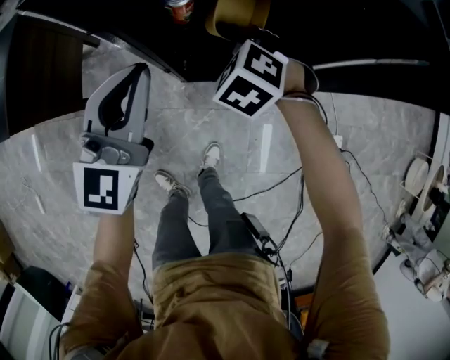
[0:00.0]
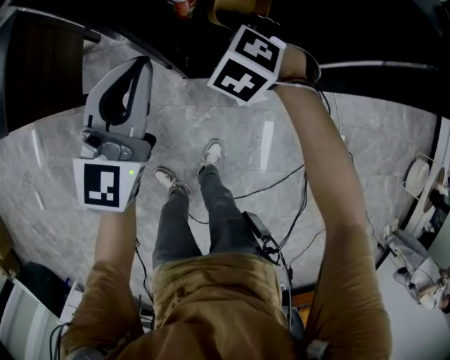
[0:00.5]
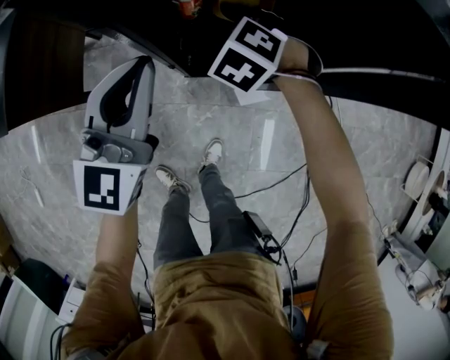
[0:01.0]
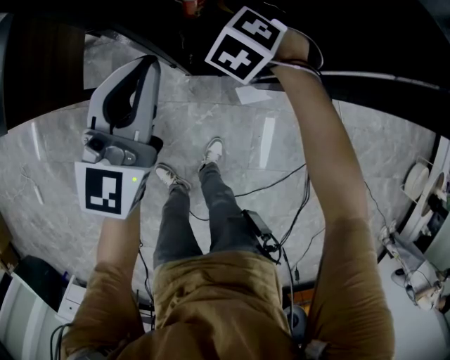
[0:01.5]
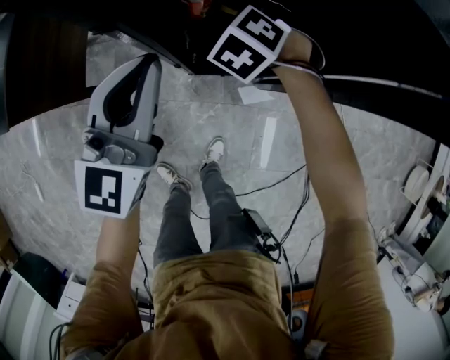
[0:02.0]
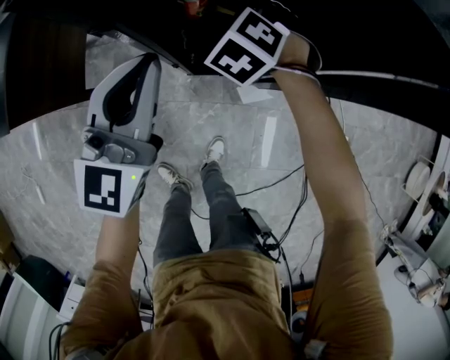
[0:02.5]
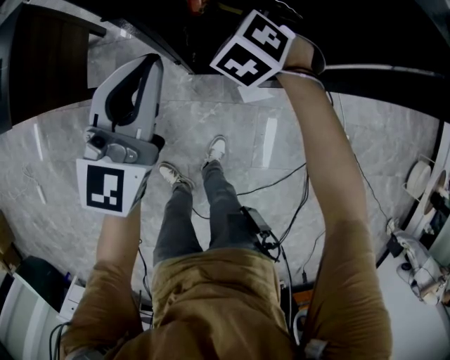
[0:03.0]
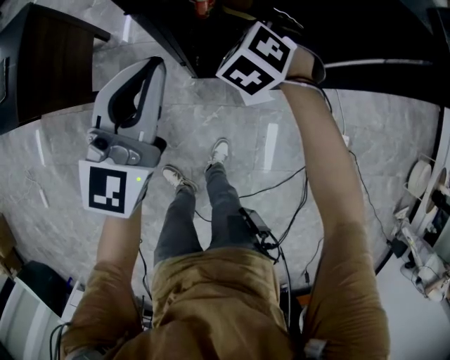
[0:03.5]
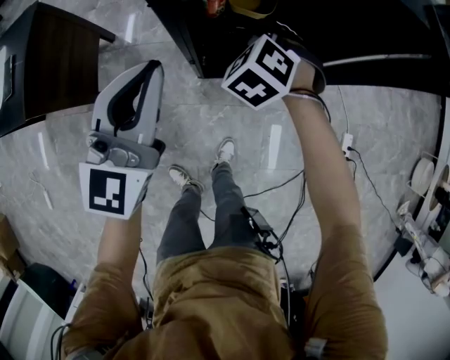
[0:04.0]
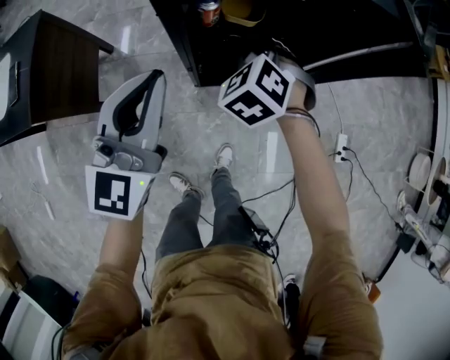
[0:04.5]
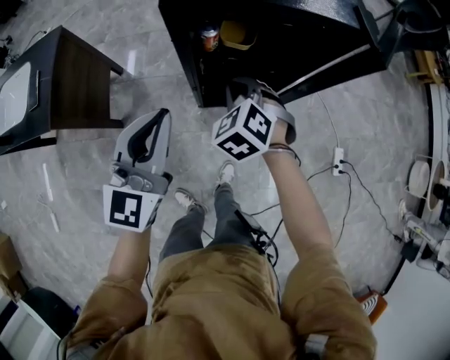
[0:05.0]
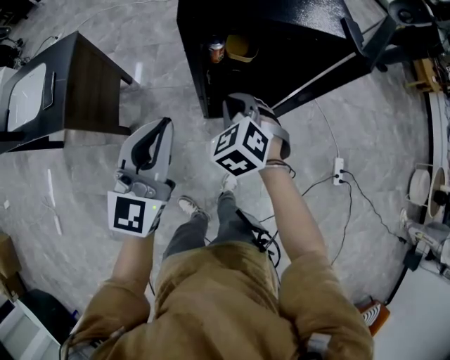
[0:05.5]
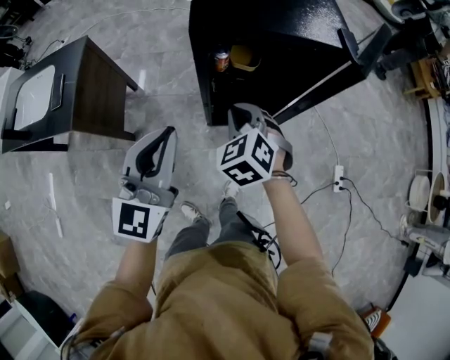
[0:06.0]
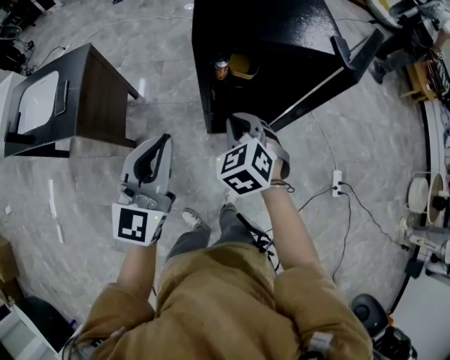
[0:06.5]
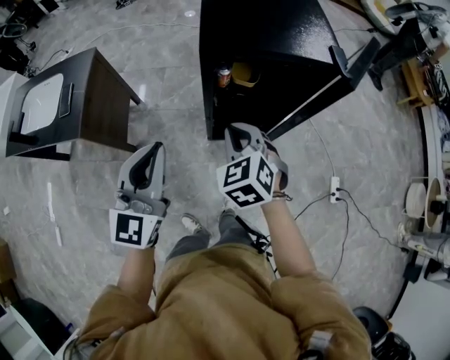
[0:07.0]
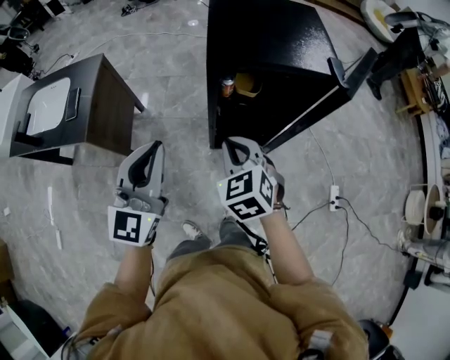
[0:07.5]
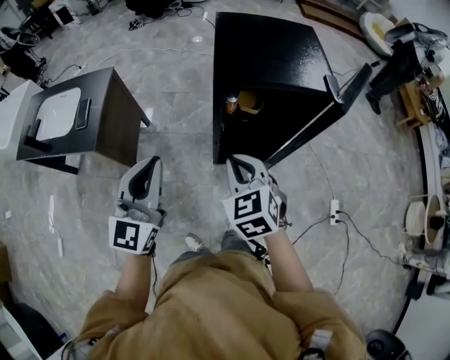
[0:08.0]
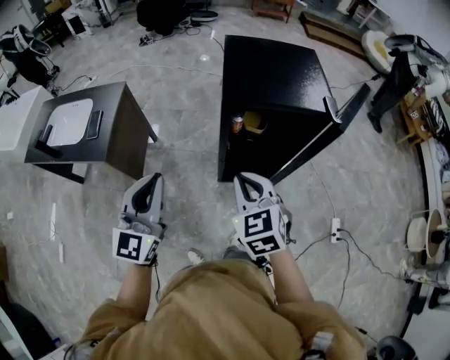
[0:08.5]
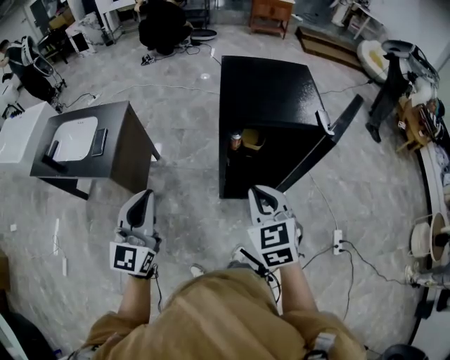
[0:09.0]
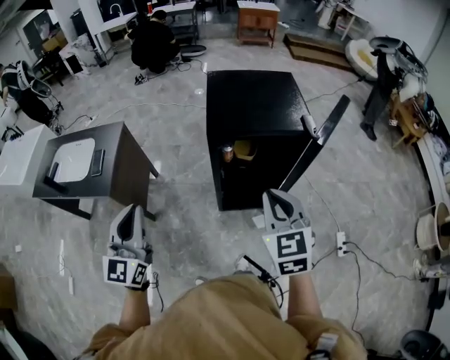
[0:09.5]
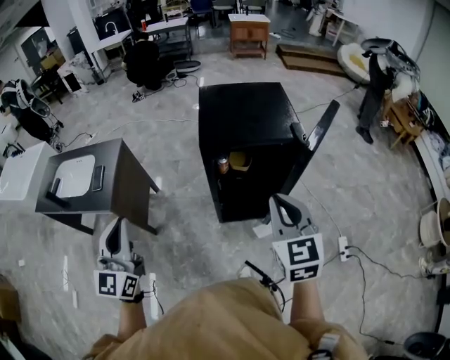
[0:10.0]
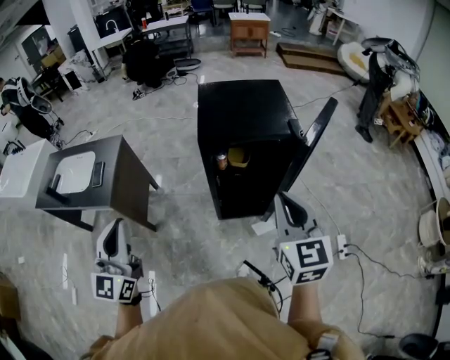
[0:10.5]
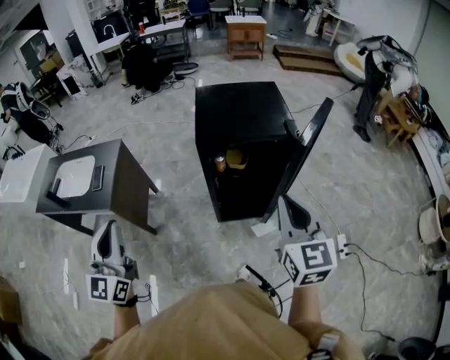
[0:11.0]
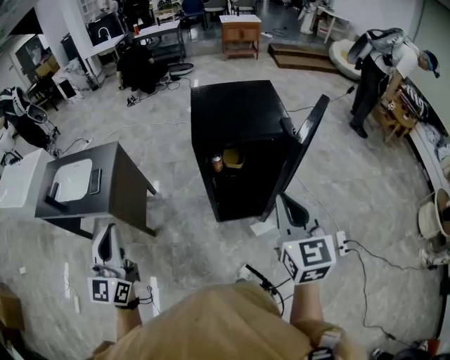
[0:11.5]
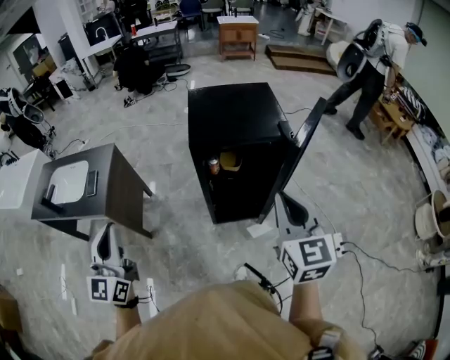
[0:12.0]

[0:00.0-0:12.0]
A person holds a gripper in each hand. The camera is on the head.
0:00.0 to 0:02.0: The right gripper is displaced forward by roughly 5 cm.
0:02.0 to 0:04.0: Both grippers move backward, roughly 5 cm.
0:04.0 to 0:06.0: The grippers both shift backward and upward by some 20 cm.
0:06.0 to 0:08.0: The left gripper travels to the left and upward by roughly 10 cm. The right gripper travels upward and backward by approximately 15 cm.
0:08.0 to 0:10.0: The left gripper moves upward, backward and to the left, roughly 15 cm, while the right gripper goes approximately 20 cm upward and to the right, and turns by roughly 20 degrees.
0:10.0 to 0:12.0: The right gripper moves about 5 cm.

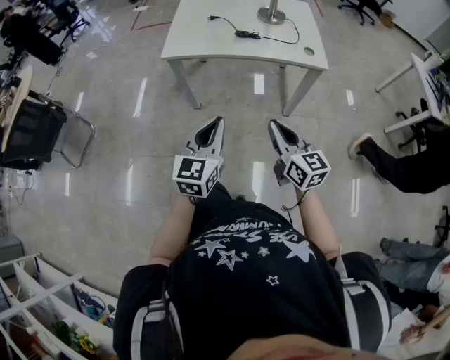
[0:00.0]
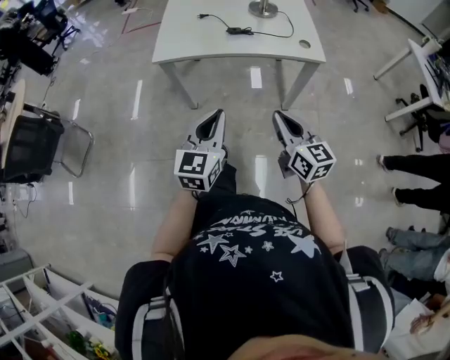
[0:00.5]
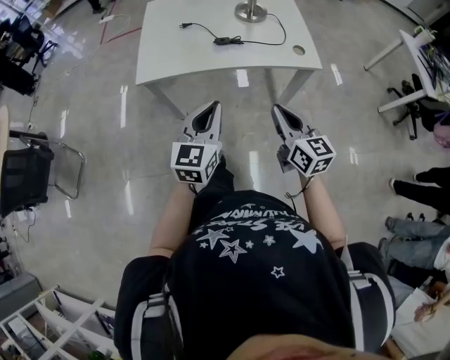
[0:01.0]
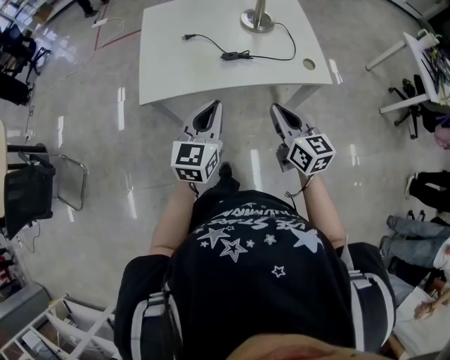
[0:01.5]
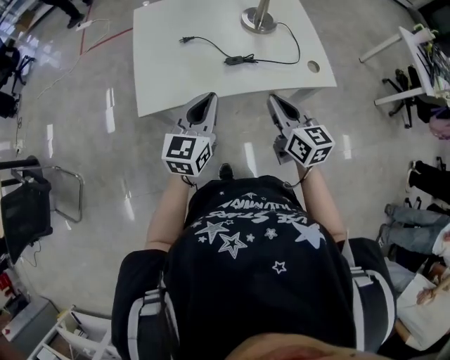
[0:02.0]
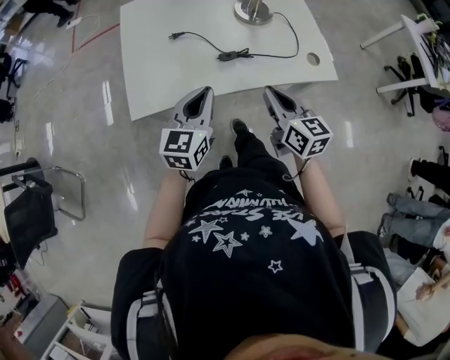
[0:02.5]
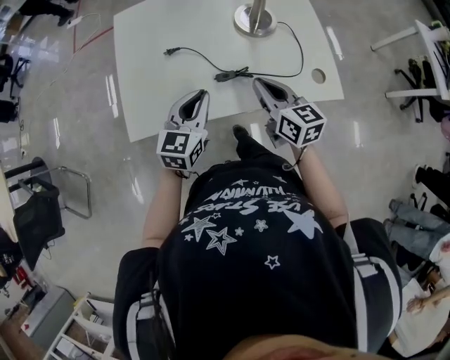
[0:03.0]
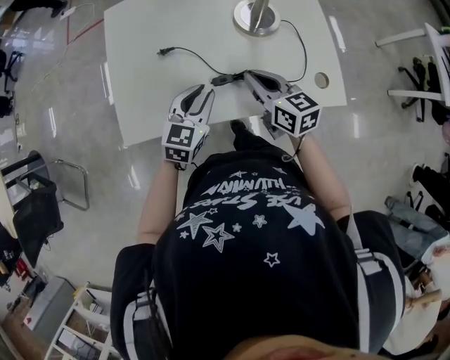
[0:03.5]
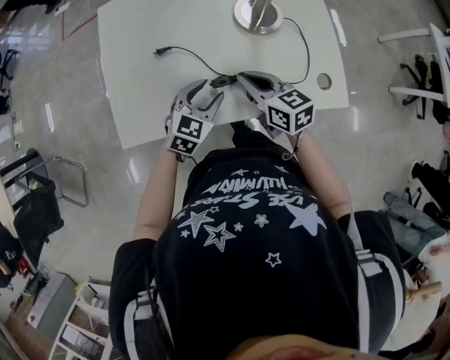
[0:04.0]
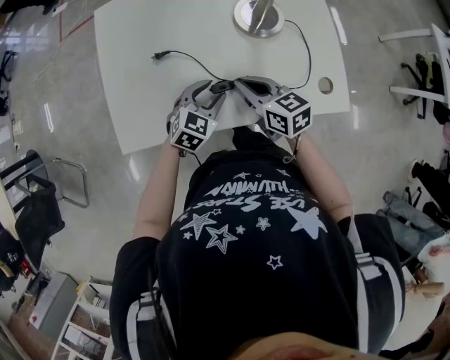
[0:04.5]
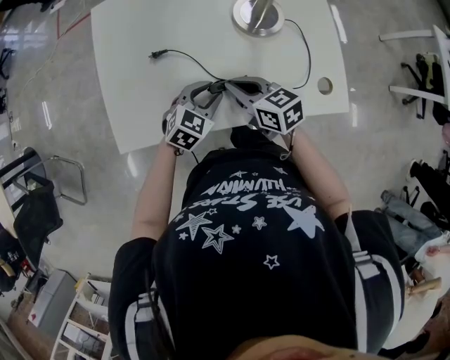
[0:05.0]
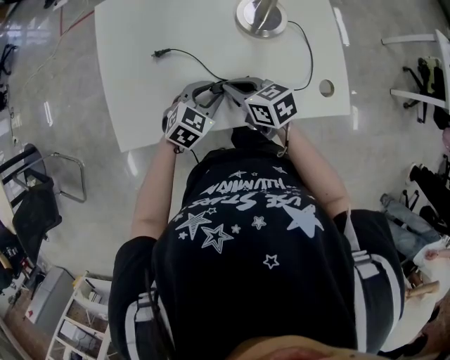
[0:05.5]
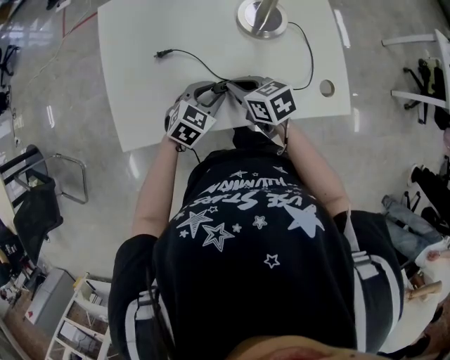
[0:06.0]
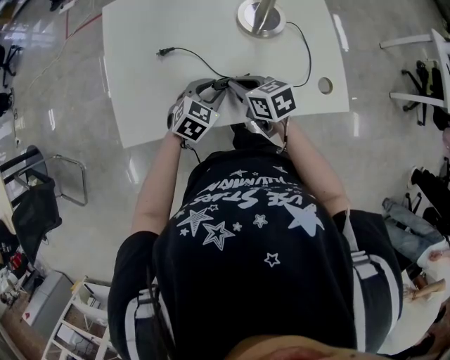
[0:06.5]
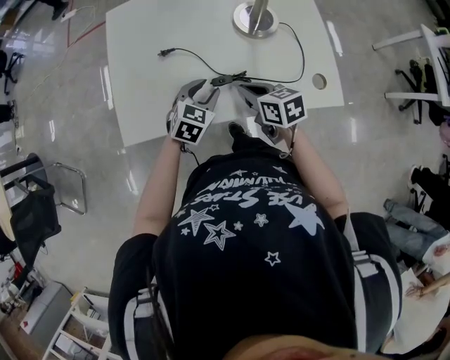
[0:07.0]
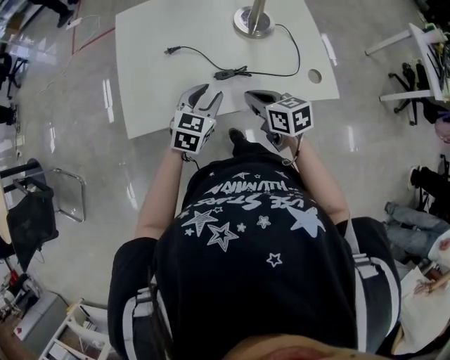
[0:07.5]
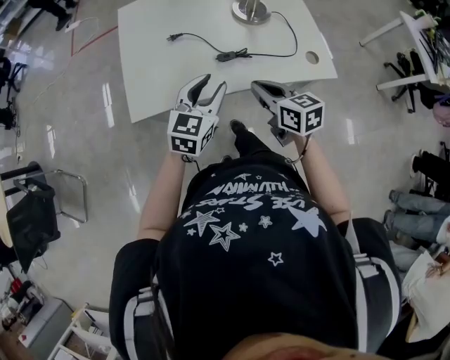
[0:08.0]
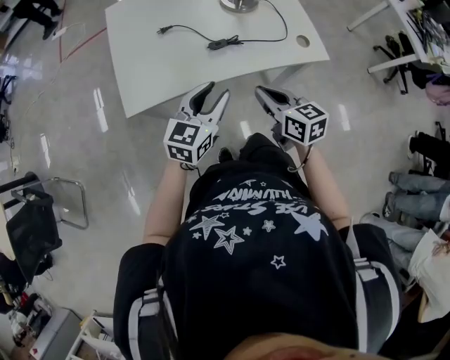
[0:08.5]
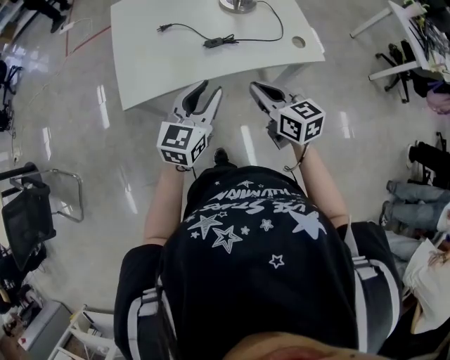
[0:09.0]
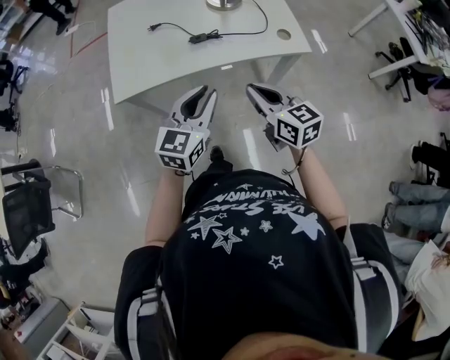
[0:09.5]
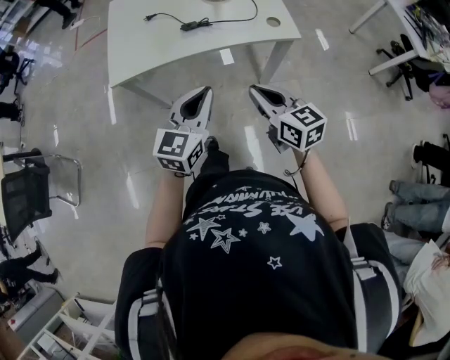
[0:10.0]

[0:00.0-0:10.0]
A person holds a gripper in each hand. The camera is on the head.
0:00.0 to 0:02.0: The grippers both shift forward by some 35 cm.
0:02.0 to 0:04.0: The right gripper goes about 25 cm forward and downward, and rotates roughly 20 degrees. Meanwhile the left gripper goes approximately 25 cm forward, downward and to the right, rotates about 30 degrees, and opens up.
0:04.0 to 0:06.0: The right gripper moves downward, about 5 cm.
0:06.0 to 0:08.0: The left gripper goes about 20 cm upward and backward, and swivels about 30 degrees; the right gripper goes roughly 20 cm backward and upward, and turns by roughly 20 degrees.
0:08.0 to 0:10.0: Both grippers travel together backward and to the right, about 25 cm. The left gripper closes its fingers.

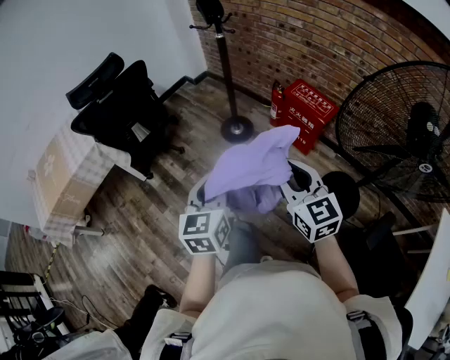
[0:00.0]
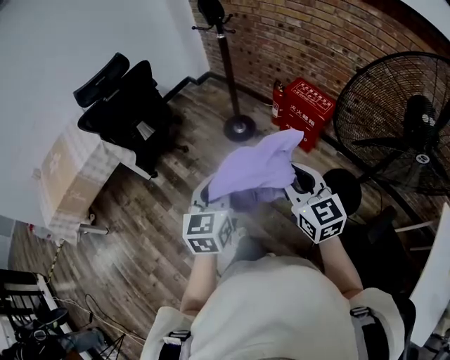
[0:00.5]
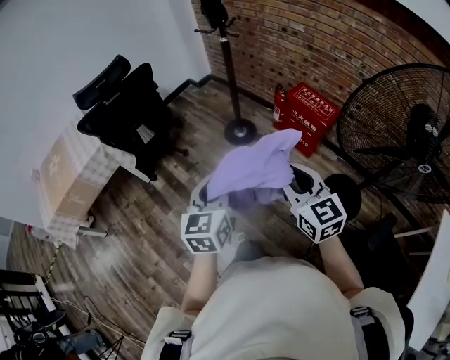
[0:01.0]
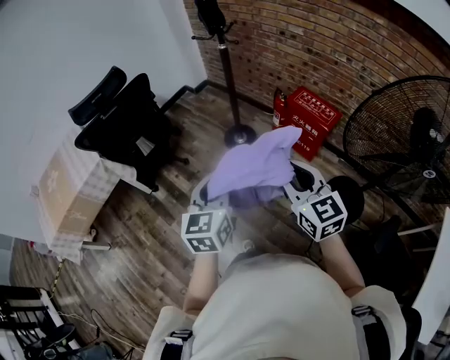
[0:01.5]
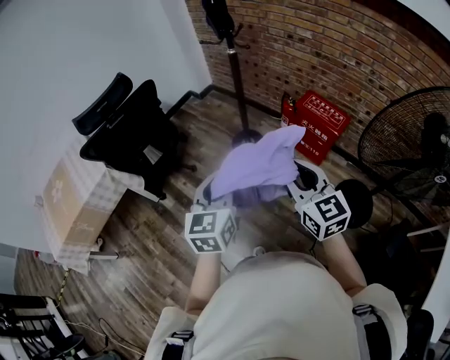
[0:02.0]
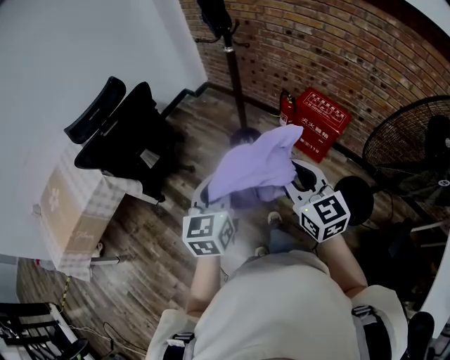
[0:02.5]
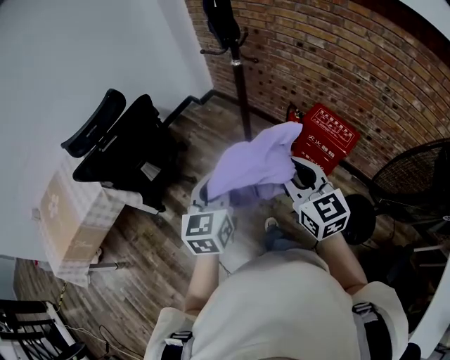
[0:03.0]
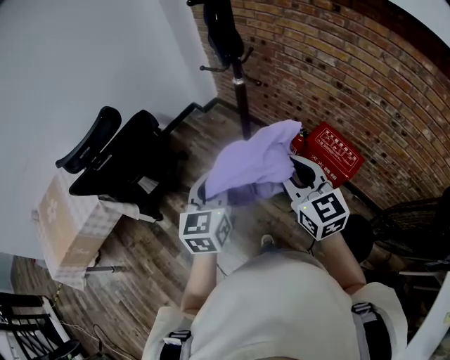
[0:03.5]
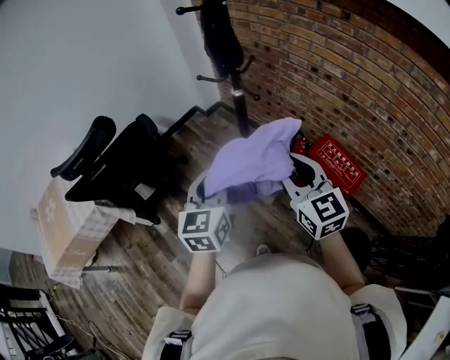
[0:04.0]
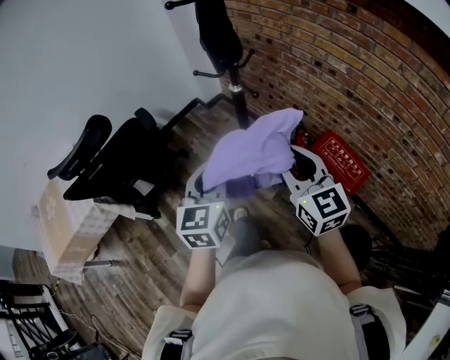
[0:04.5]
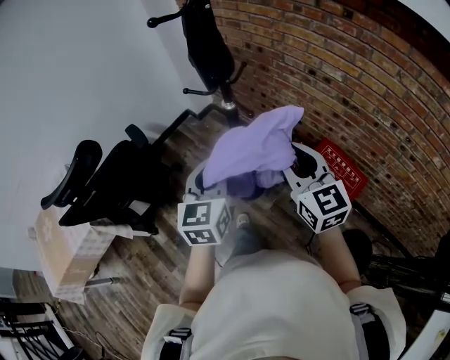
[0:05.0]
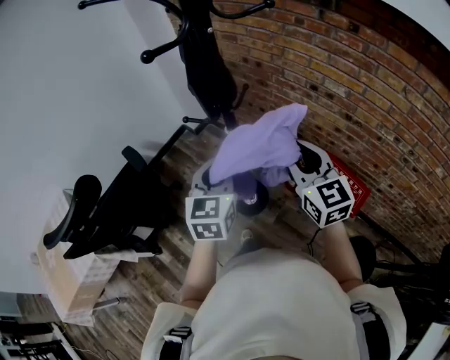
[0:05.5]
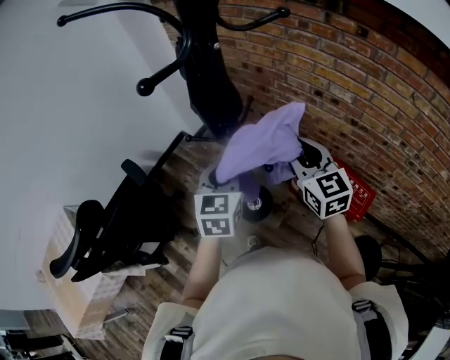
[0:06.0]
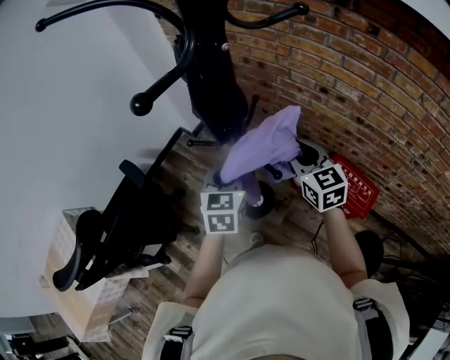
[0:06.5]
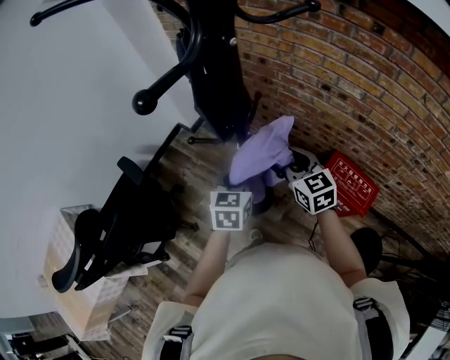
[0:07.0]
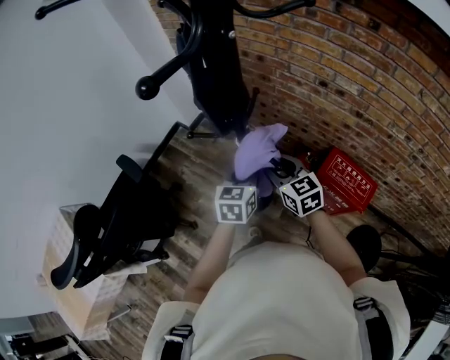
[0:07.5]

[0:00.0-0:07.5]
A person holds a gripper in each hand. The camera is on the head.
0:00.0 to 0:02.0: Both grippers move forward and to the left, about 10 cm.
0:02.0 to 0:04.0: The two grippers go some 30 cm forward.
0:04.0 to 0:05.5: The two grippers go roughly 20 cm forward.
0:05.5 to 0:07.5: The left gripper moves downward and forward, some 15 cm, and turns by approximately 20 degrees. The right gripper is displaced downward, forward and to the left by approximately 20 cm.
